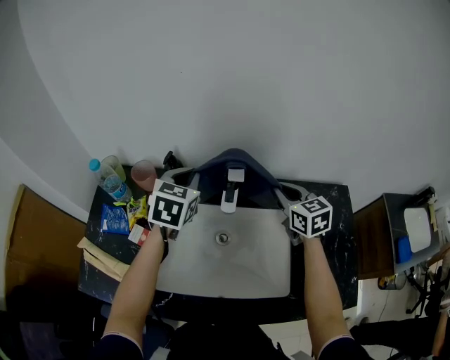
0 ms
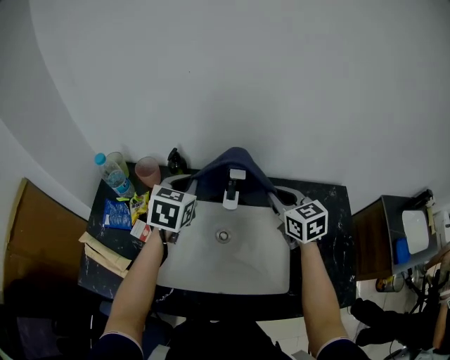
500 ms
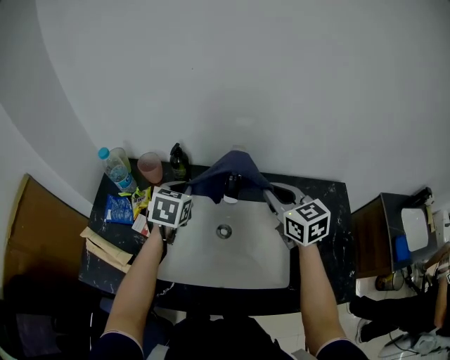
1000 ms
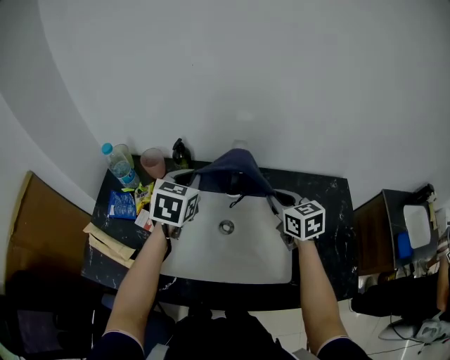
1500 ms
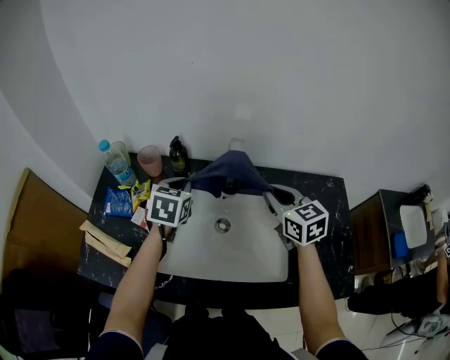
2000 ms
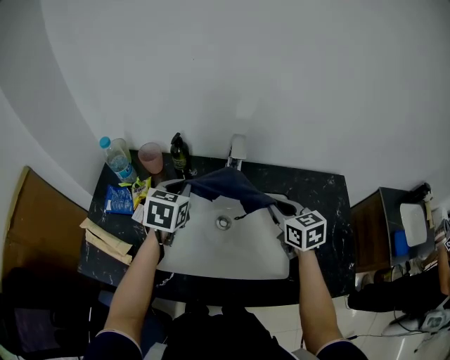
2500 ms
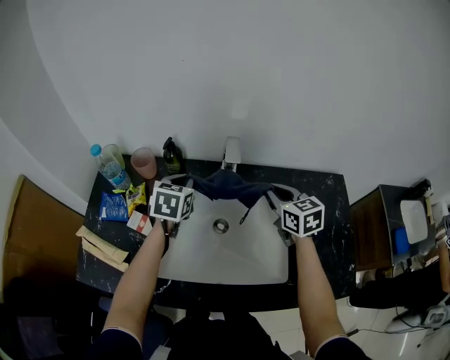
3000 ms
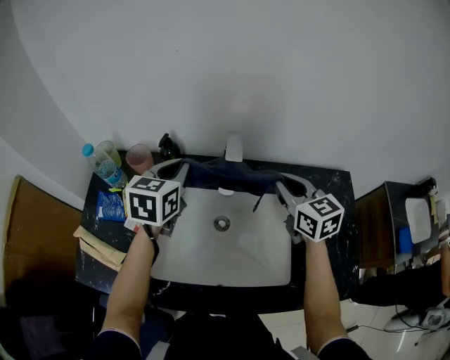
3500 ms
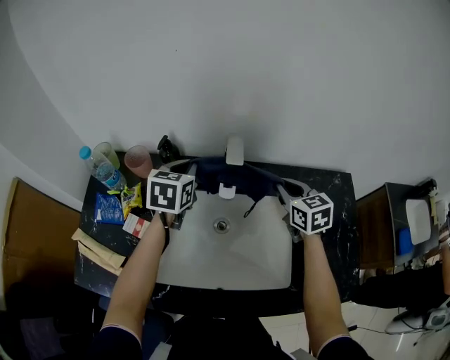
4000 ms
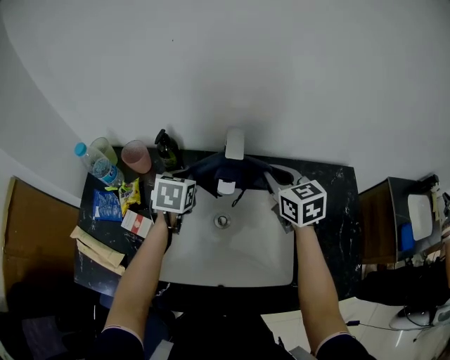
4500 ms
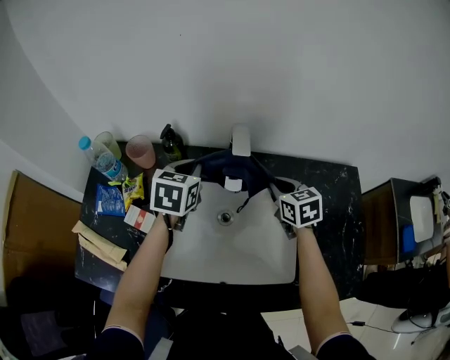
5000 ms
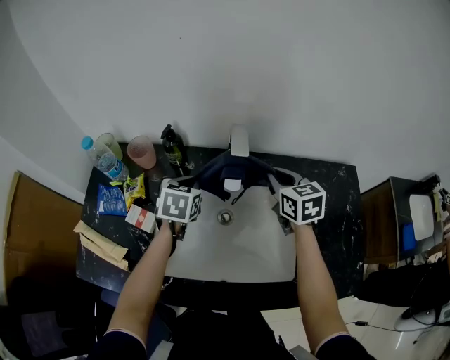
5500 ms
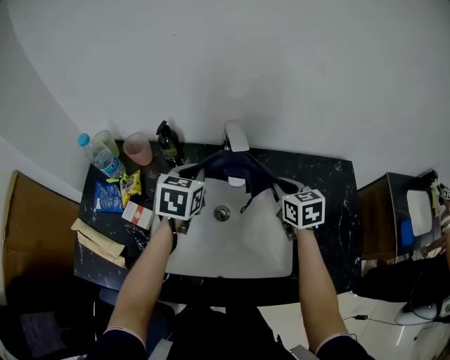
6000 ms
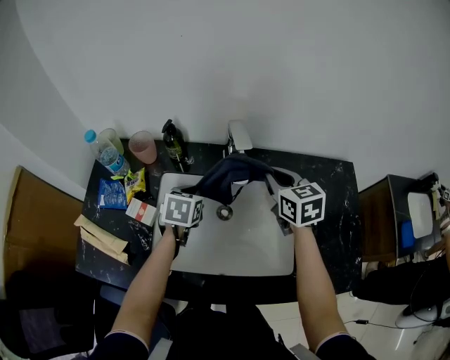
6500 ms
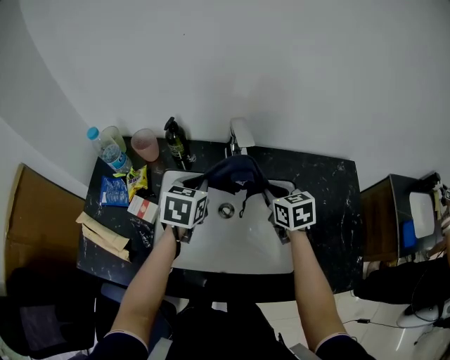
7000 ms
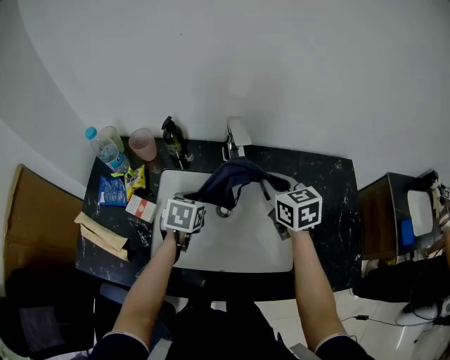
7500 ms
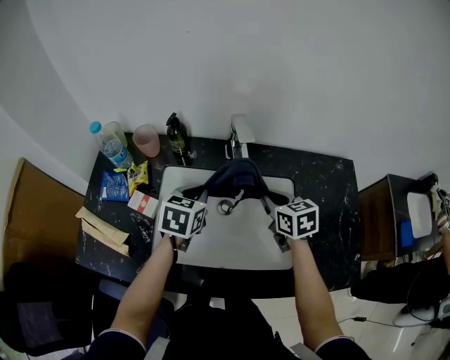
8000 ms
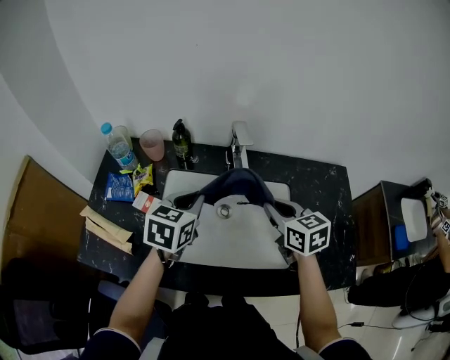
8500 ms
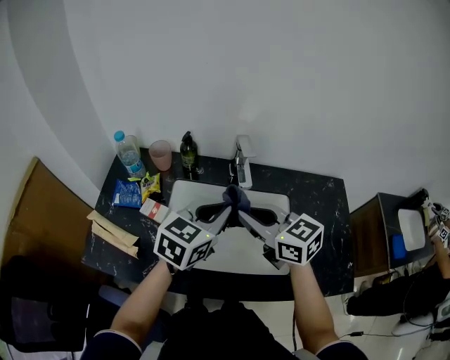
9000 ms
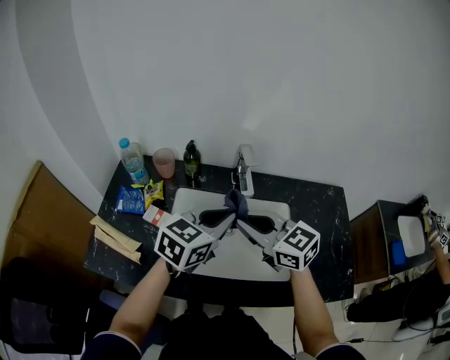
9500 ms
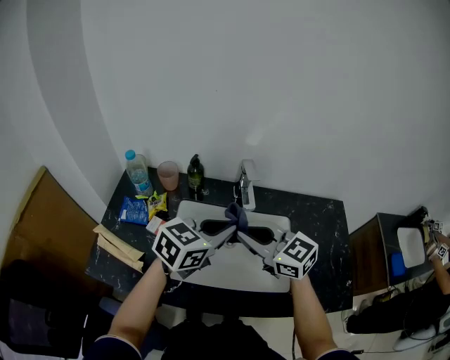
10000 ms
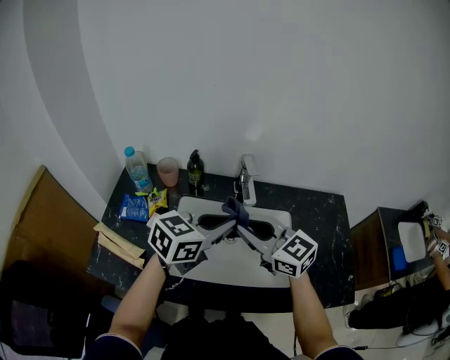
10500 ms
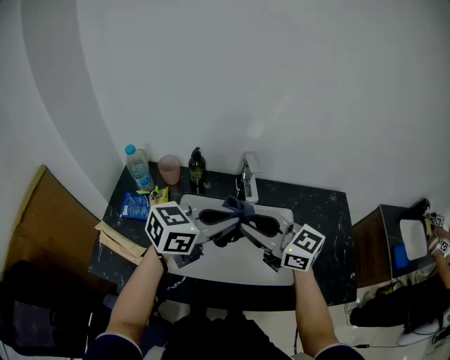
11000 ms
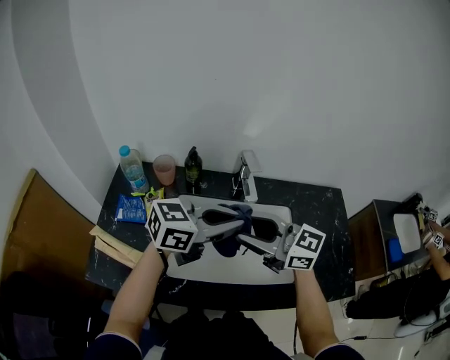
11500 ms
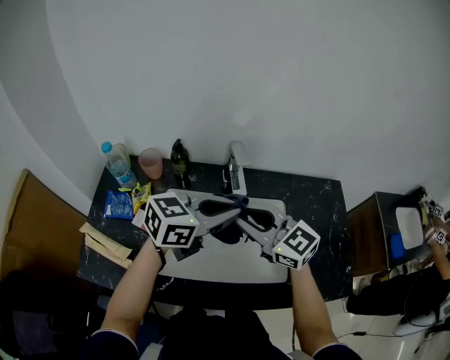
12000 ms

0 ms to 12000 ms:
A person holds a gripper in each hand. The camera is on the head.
0 ms to 2000 ms: The right gripper is displaced backward by about 5 cm. Meanwhile the left gripper goes up and down, approximately 5 cm each way, reversing 2 times.
2000 ms to 4000 ms: The left gripper heads forward, covering approximately 5 cm, while the right gripper heads downward and to the right, covering approximately 10 cm.
4000 ms to 6000 ms: The left gripper swings up and down, roughly 10 cm each way, with 3 reversals. Meanwhile the right gripper swings up and down, roughly 5 cm each way, with 2 reversals.
6000 ms to 8000 ms: The right gripper swings up and down, some 5 cm each way, with 3 reversals. Meanwhile the left gripper swings up and down, roughly 10 cm each way, with 3 reversals.
8000 ms to 10000 ms: The left gripper moves upward and backward, some 15 cm, and turns by approximately 30 degrees. Meanwhile the right gripper goes about 20 cm upward, to the left and backward, and swivels about 40 degrees.
10000 ms to 12000 ms: The right gripper opens, then closes once more.

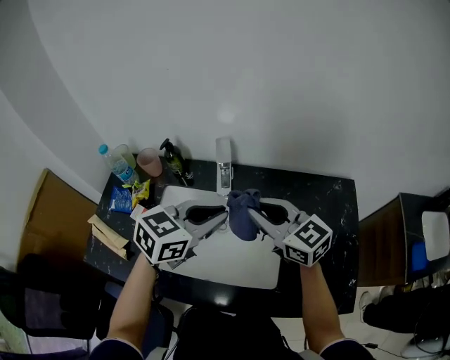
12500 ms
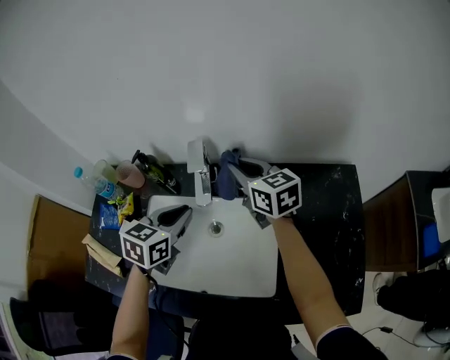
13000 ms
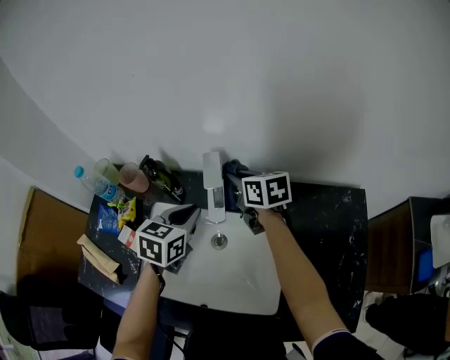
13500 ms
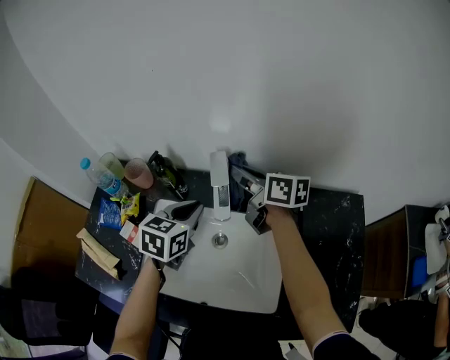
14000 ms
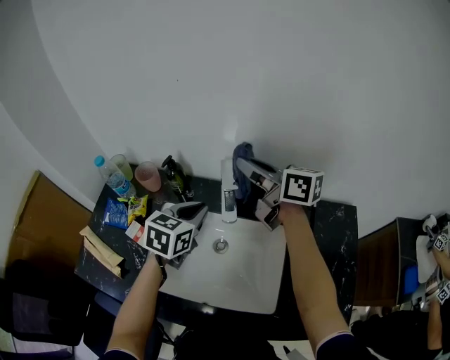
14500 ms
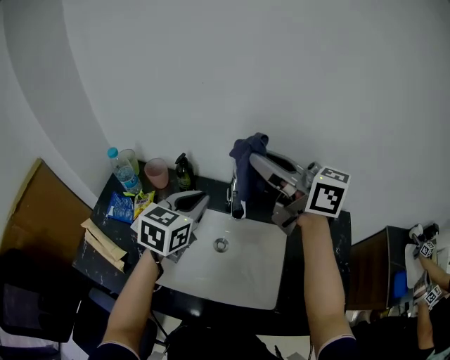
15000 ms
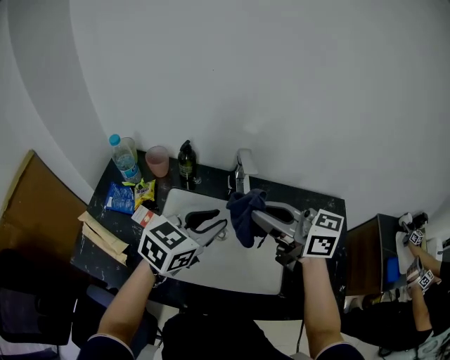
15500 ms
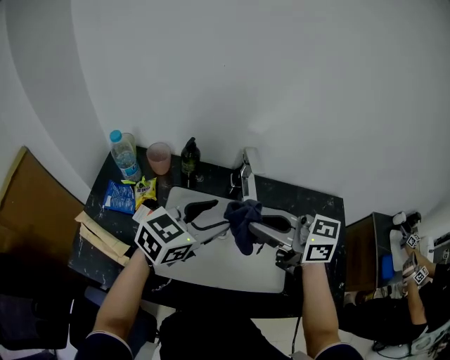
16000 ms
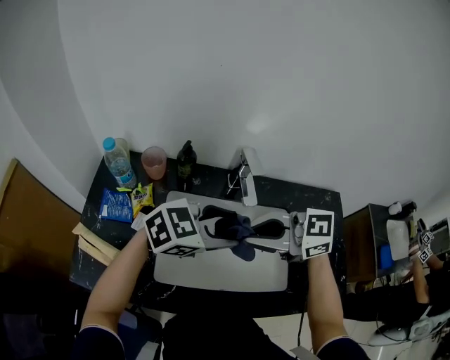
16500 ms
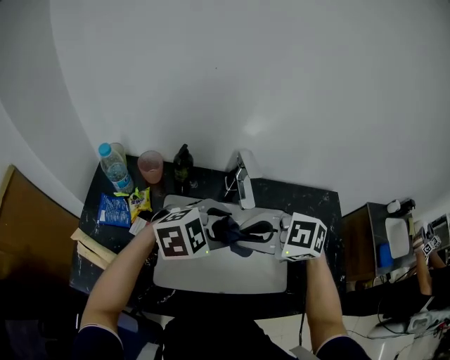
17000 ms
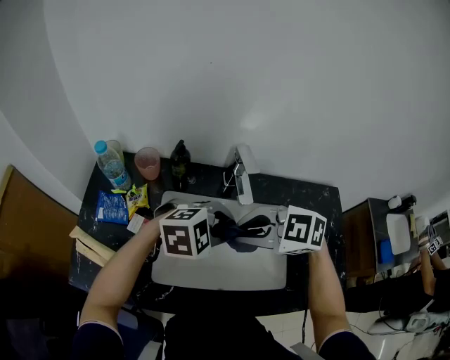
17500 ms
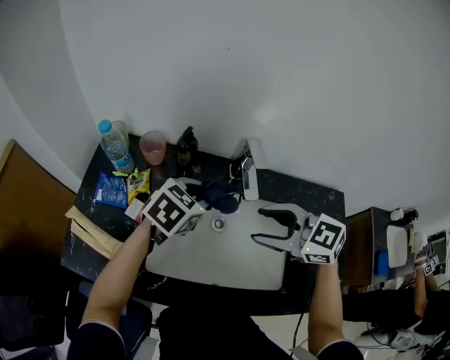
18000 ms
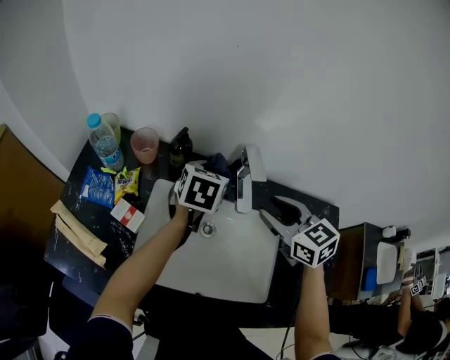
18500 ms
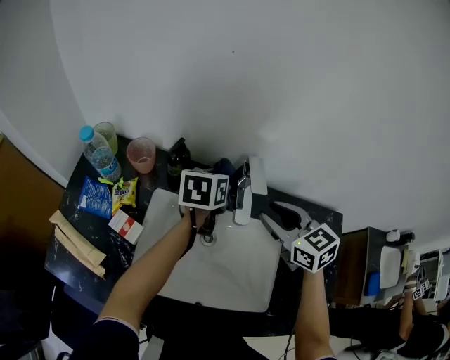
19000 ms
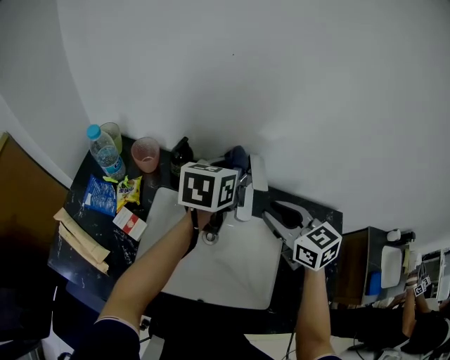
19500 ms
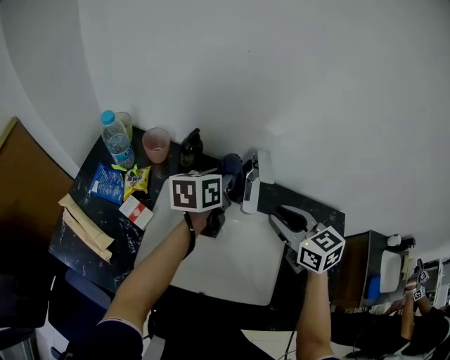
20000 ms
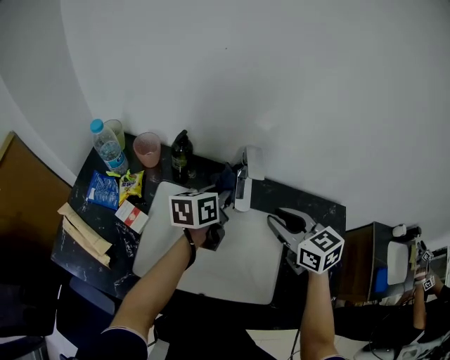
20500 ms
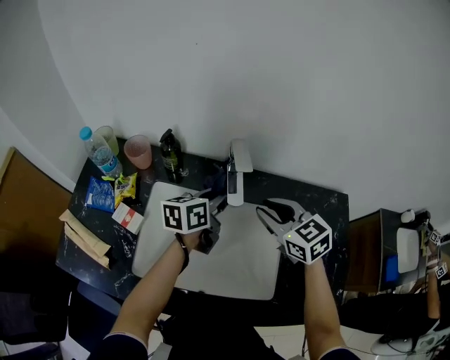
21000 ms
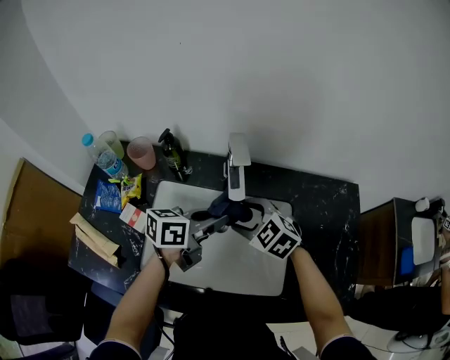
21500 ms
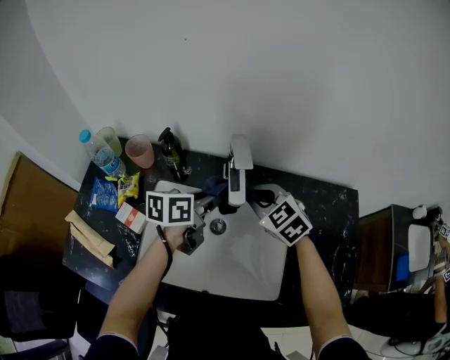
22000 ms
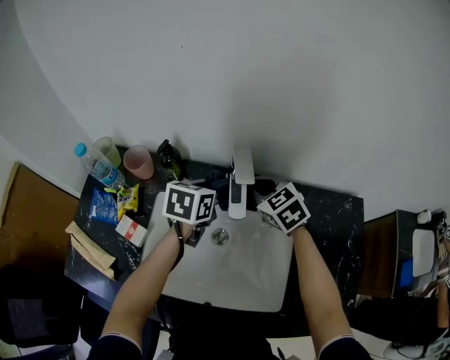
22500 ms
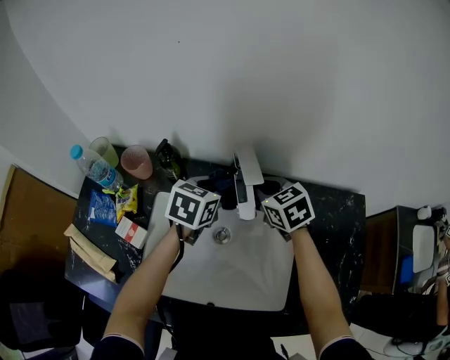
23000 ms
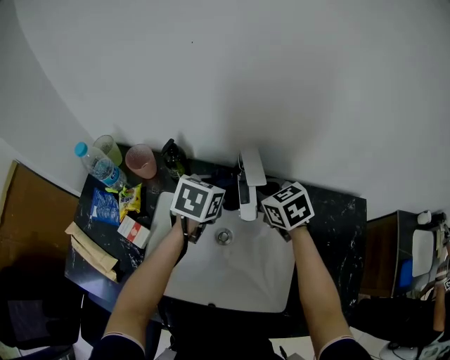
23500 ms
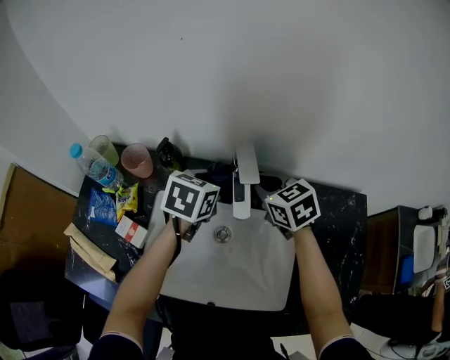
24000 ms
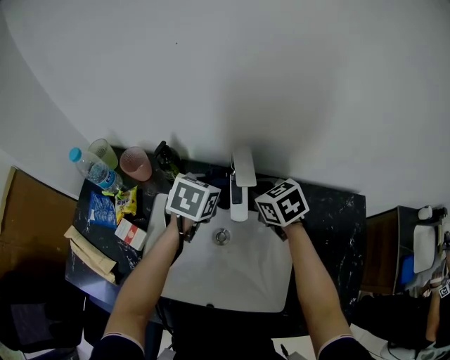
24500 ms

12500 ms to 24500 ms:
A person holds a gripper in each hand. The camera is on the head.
12500 ms to 14500 ms: The left gripper is displaced forward, to the left and downward by approximately 15 cm, and changes its angle by some 30 degrees. Meanwhile the right gripper goes roughly 20 cm forward, and turns by approximately 30 degrees.
14500 ms to 16500 ms: The left gripper changes place by about 15 cm, rotates some 60 degrees, and opens; the right gripper goes upward and returns, about 10 cm each way, and rotates about 40 degrees.
16500 ms to 18500 ms: The left gripper moves approximately 20 cm, turns by some 60 degrees, and closes its fingers. The right gripper moves roughly 15 cm, changes its angle by about 40 degrees, and opens its fingers.
18500 ms to 20500 ms: The left gripper goes upward and returns, about 5 cm each way, and swivels roughly 40 degrees.
20500 ms to 22500 ms: The left gripper travels backward and back again, some 10 cm each way, and turns by about 30 degrees. The right gripper travels forward, downward and to the left by approximately 15 cm, and closes up.
22500 ms to 24500 ms: The grippers stay close to where they were, moving slightly.

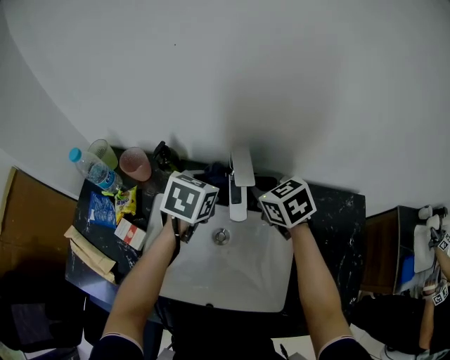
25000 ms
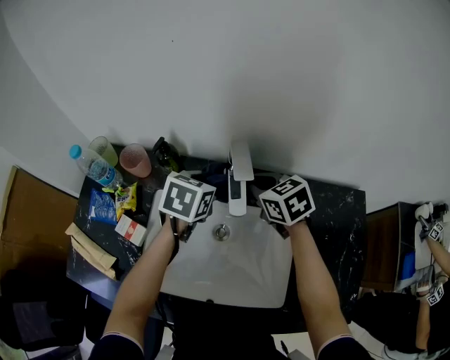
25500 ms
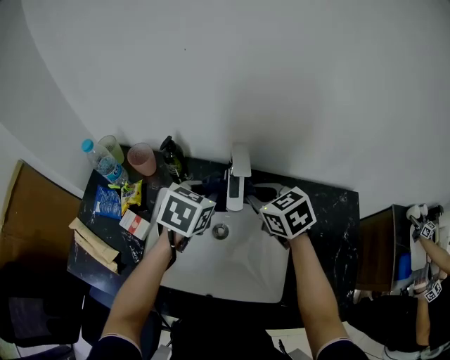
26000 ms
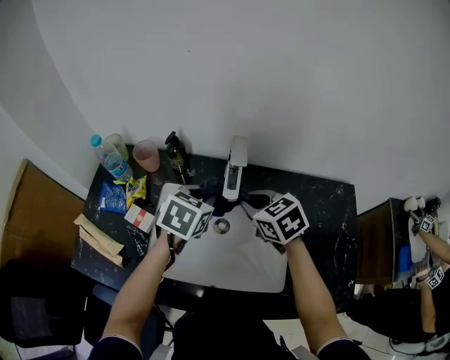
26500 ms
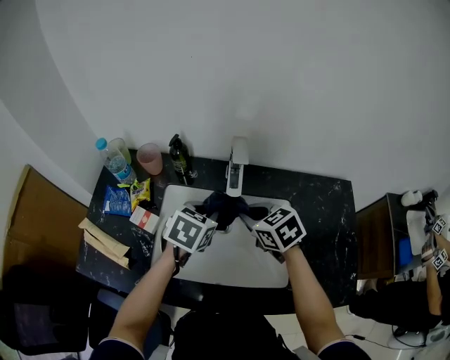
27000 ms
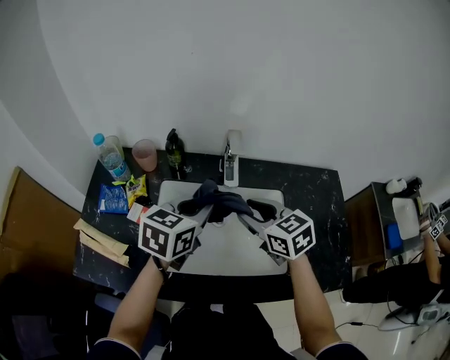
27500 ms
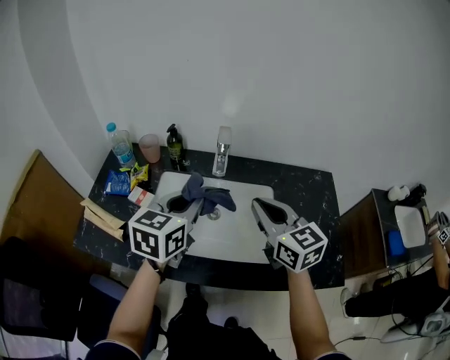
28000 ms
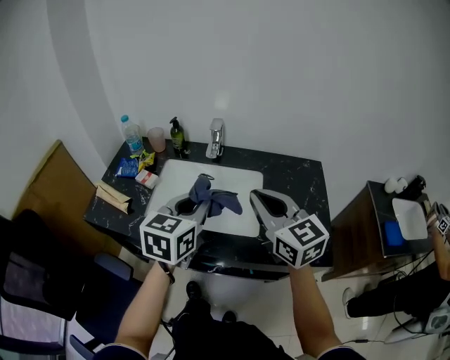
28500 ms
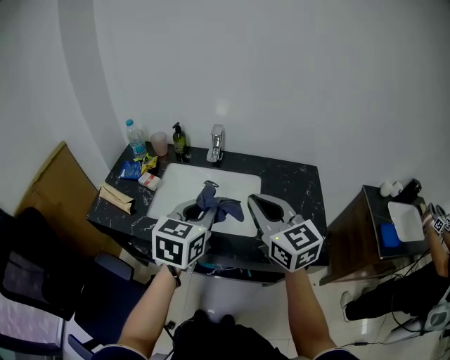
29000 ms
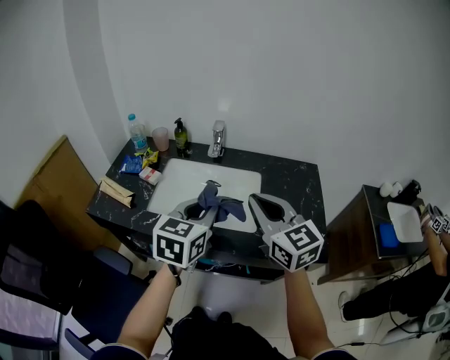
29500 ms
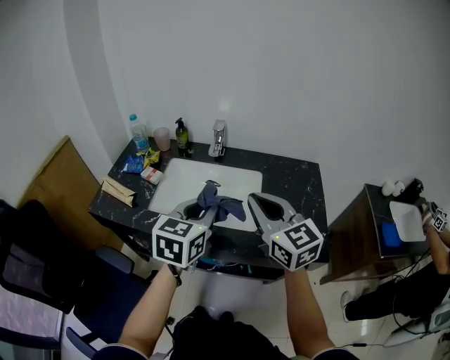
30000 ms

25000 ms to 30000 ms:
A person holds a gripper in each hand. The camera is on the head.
25000 ms to 27500 ms: The right gripper travels backward by roughly 15 cm, and opens. The left gripper shifts approximately 20 cm backward and upward.
27500 ms to 30000 ms: The left gripper moves backward, roughly 20 cm, and rotates about 20 degrees; the right gripper heads backward and upward, covering some 25 cm, turns by roughly 30 degrees, and closes its fingers.
